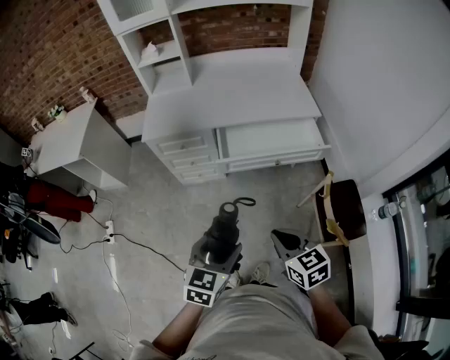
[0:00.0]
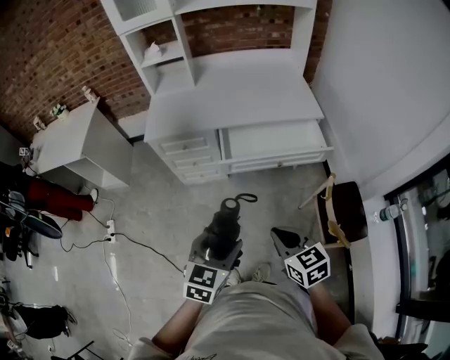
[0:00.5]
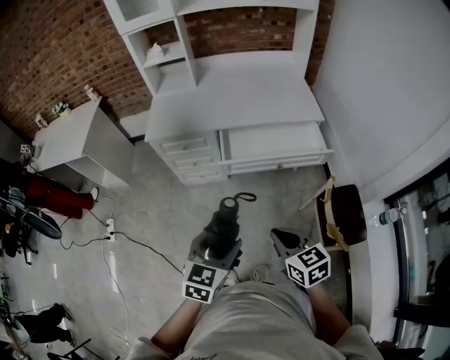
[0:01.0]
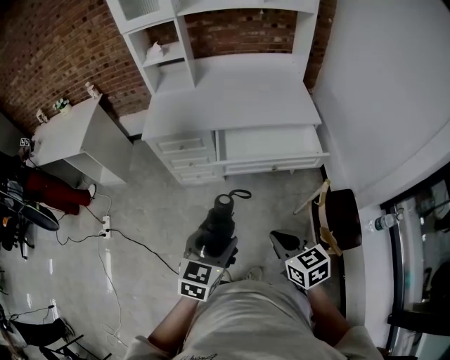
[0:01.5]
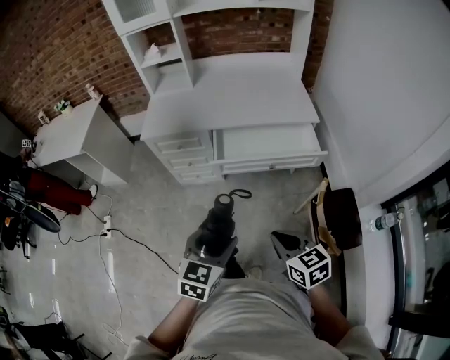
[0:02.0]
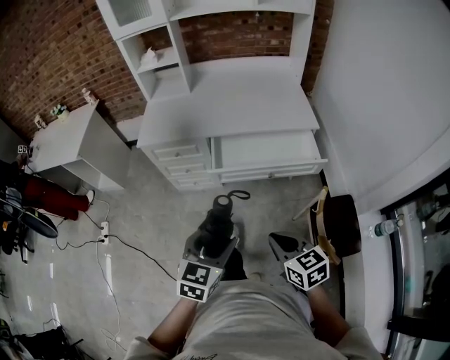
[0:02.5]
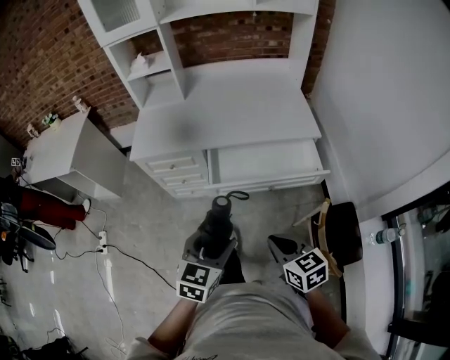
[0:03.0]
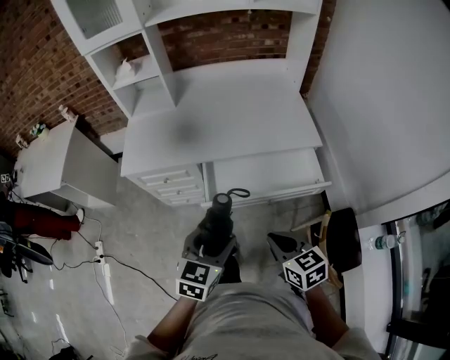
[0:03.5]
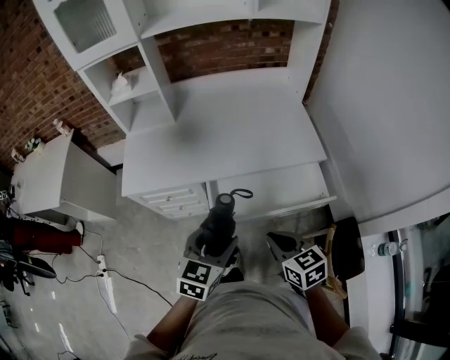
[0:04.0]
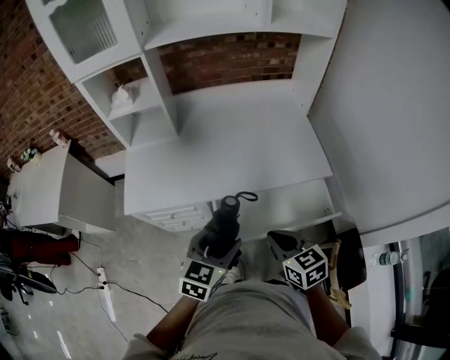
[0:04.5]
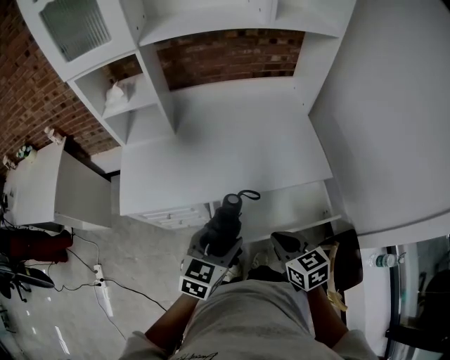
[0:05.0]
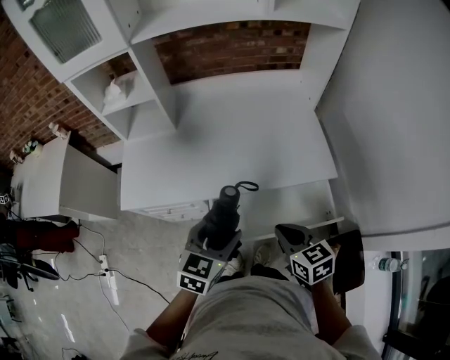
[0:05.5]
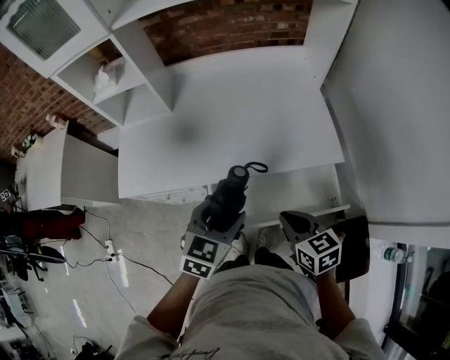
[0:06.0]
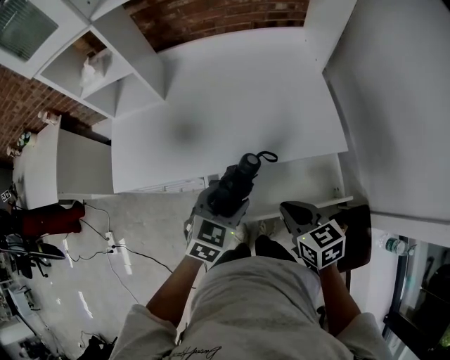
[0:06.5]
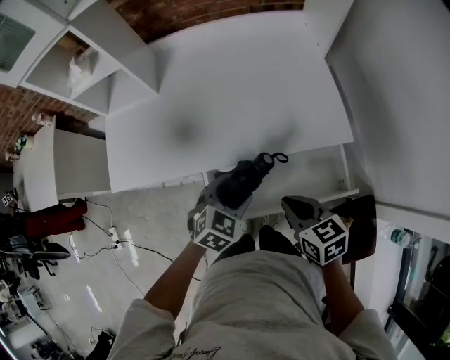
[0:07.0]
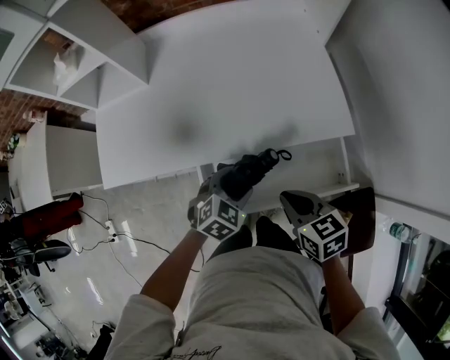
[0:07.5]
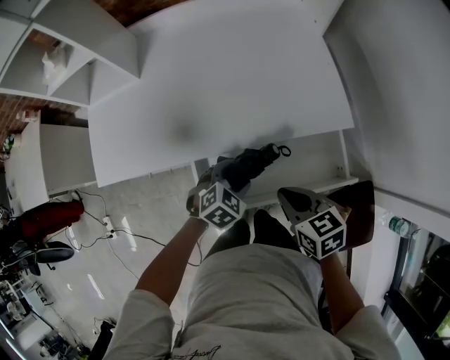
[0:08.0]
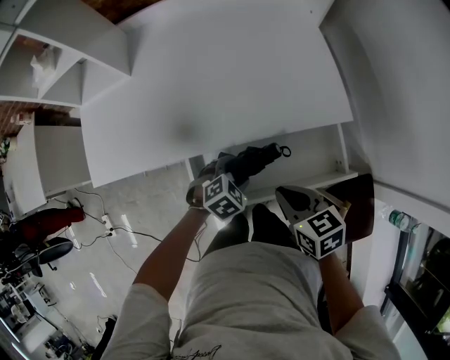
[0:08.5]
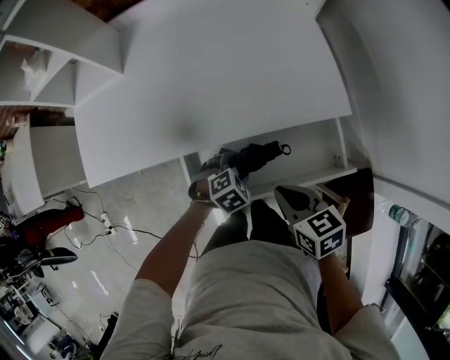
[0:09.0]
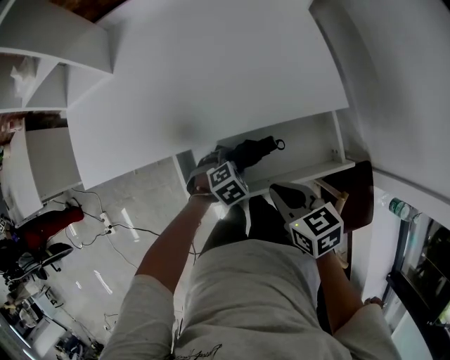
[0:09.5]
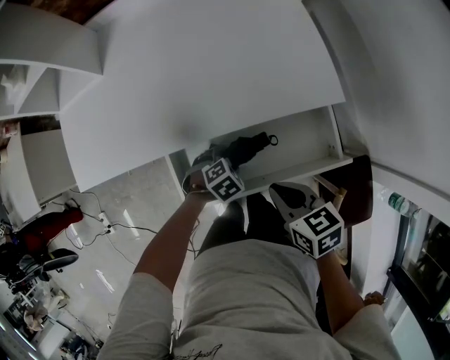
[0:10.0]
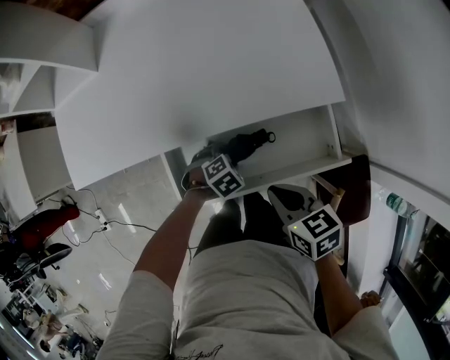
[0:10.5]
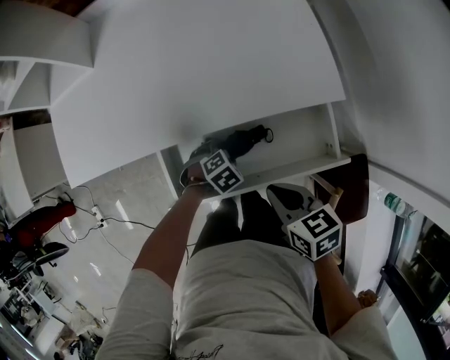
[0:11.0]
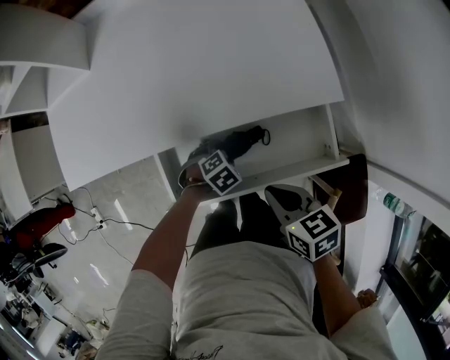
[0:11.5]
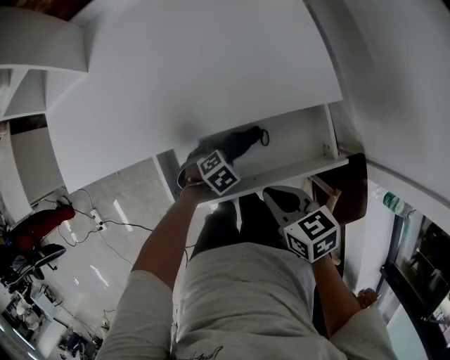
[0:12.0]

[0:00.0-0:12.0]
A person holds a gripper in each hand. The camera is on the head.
0:00.0 to 0:02.0: The right gripper travels to the right by roughly 5 cm.
0:02.0 to 0:04.0: Both grippers move forward, about 30 cm.
0:04.0 to 0:06.0: Both grippers move forward, roughly 15 cm.
0:06.0 to 0:08.0: The right gripper is displaced downward by some 10 cm. Meanwhile the left gripper shifts about 20 cm downward, and changes its angle by about 30 degrees.
0:08.0 to 0:10.0: The left gripper goes some 10 cm downward, and rotates some 20 degrees.
0:10.0 to 0:12.0: The grippers make only small movements.

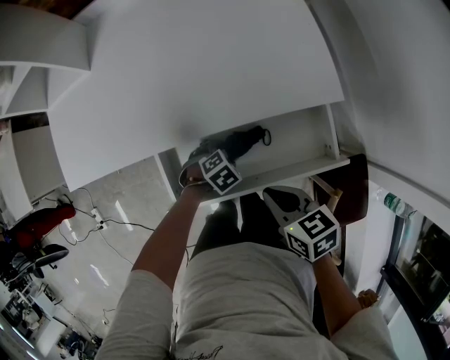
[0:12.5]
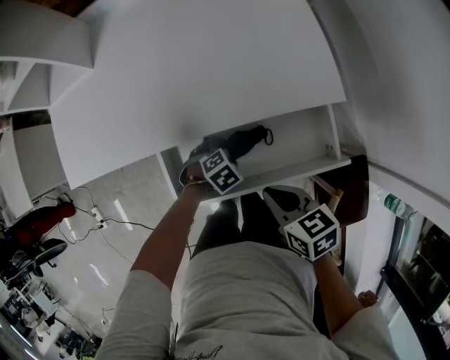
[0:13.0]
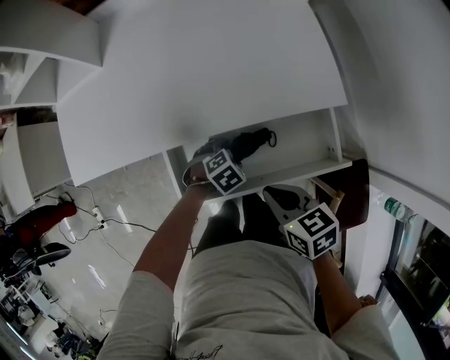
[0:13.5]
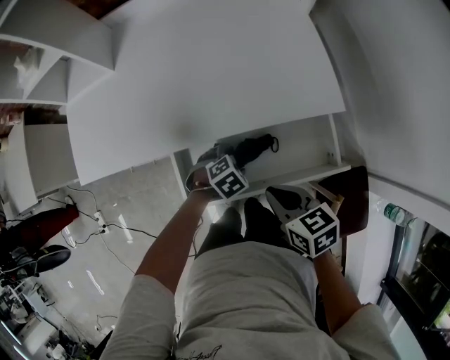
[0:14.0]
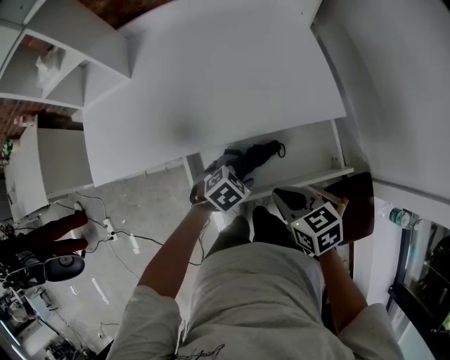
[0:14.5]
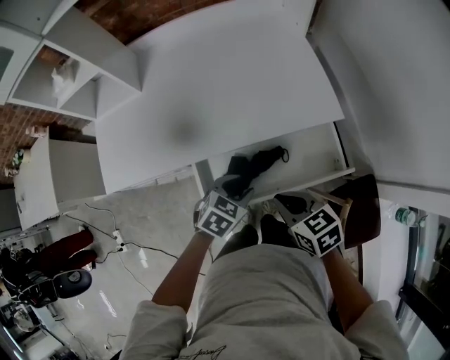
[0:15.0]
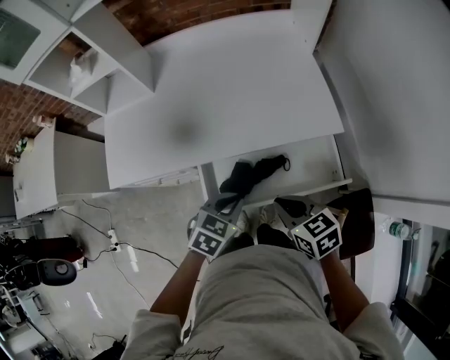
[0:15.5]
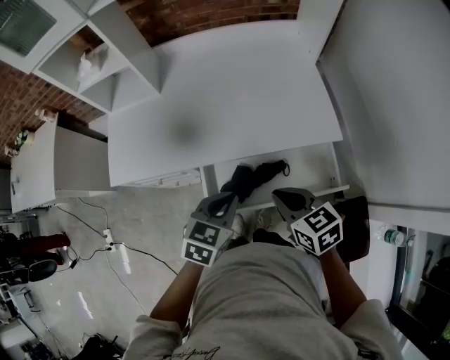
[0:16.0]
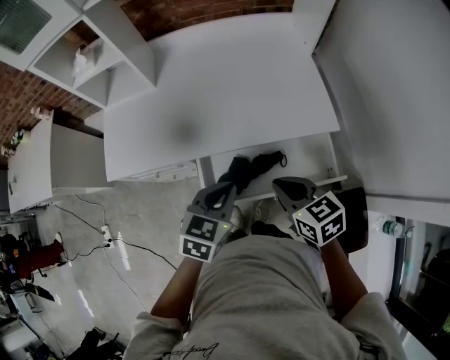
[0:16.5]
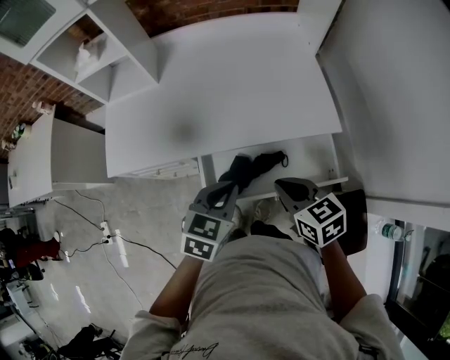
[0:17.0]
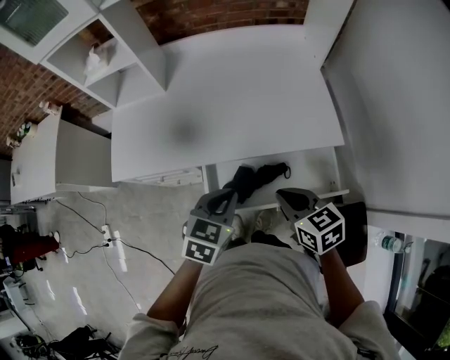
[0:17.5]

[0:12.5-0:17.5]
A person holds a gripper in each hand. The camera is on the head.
0:12.5 to 0:15.0: The right gripper goes roughly 5 cm upward. Meanwhile the left gripper goes roughly 20 cm upward, and changes its angle by about 30 degrees.
0:15.0 to 0:17.5: The left gripper shifts about 15 cm upward and to the left, rotates approximately 30 degrees, and closes its fingers. Meanwhile the right gripper shifts some 5 cm upward.

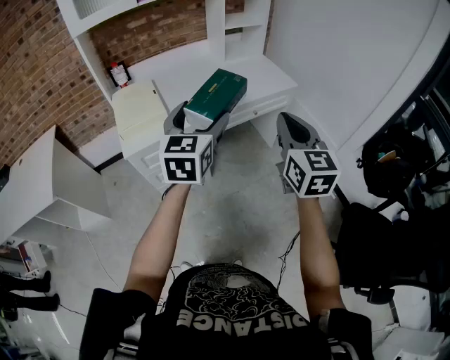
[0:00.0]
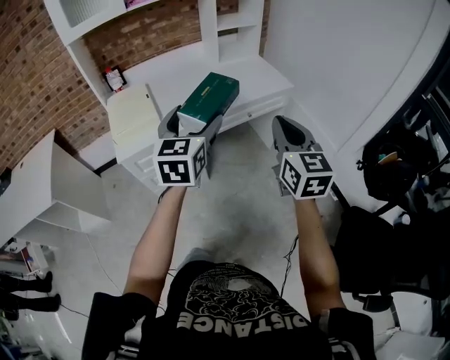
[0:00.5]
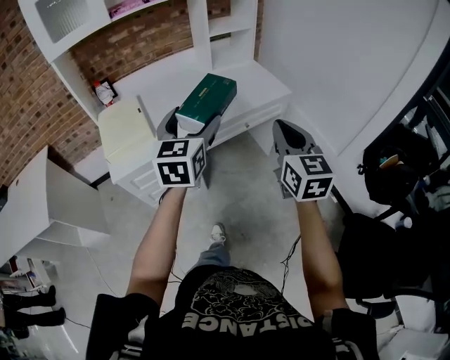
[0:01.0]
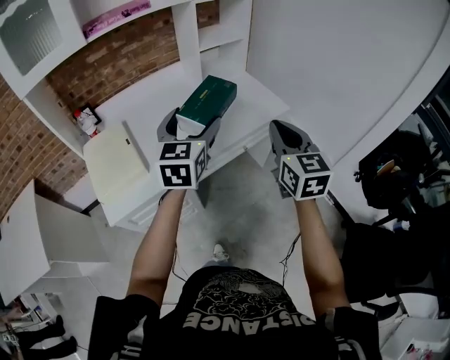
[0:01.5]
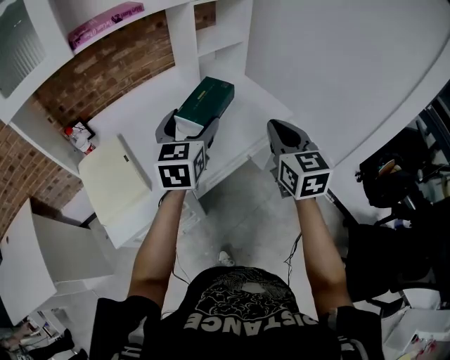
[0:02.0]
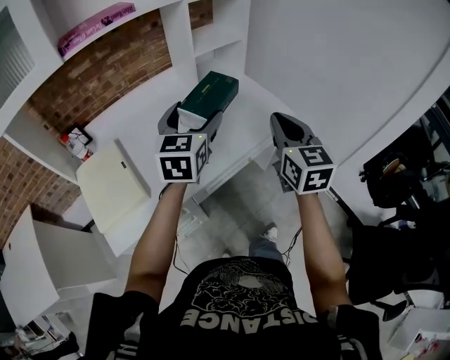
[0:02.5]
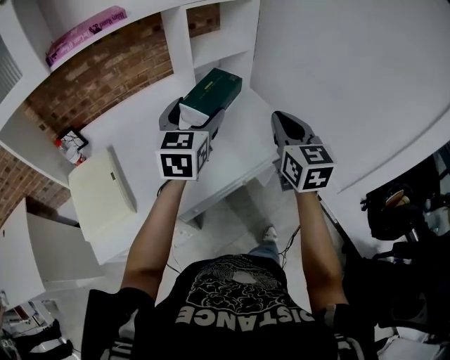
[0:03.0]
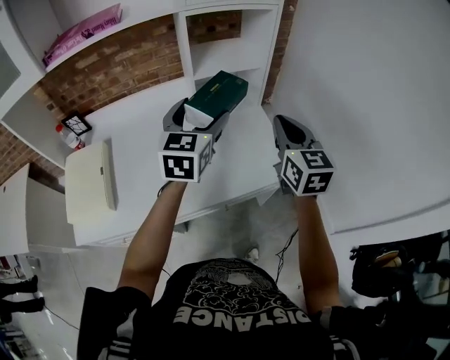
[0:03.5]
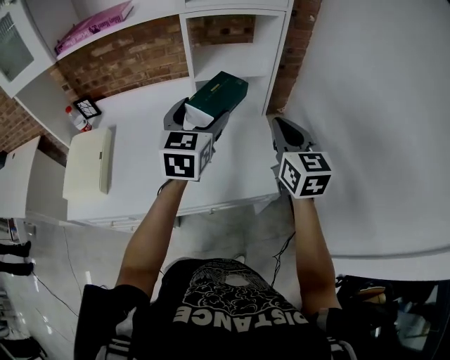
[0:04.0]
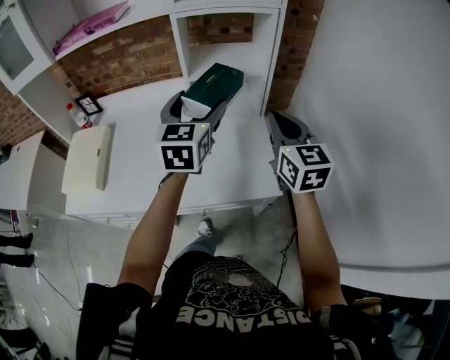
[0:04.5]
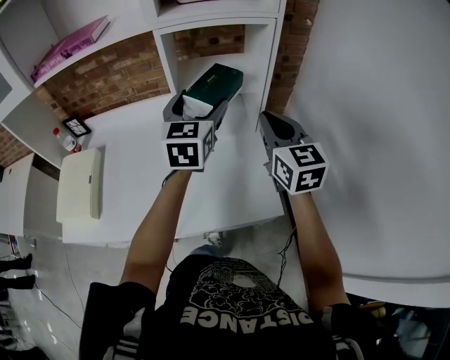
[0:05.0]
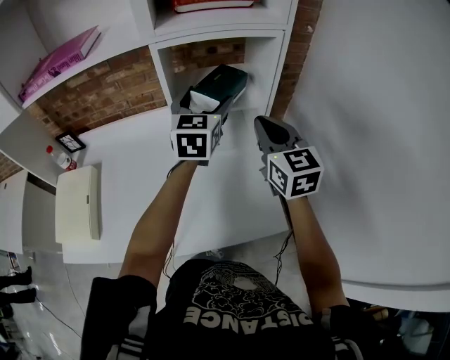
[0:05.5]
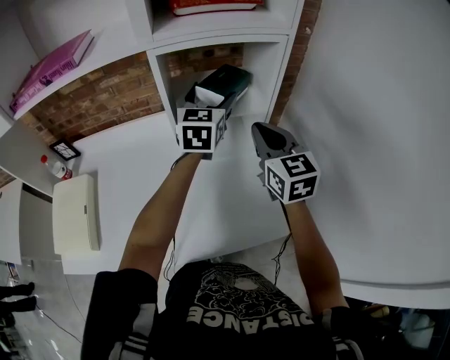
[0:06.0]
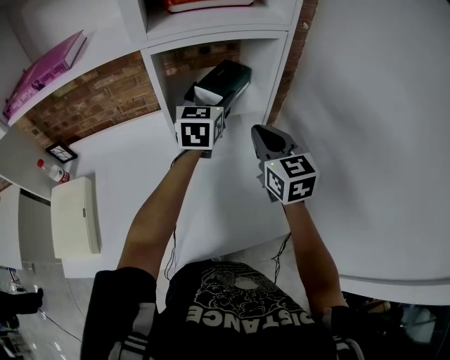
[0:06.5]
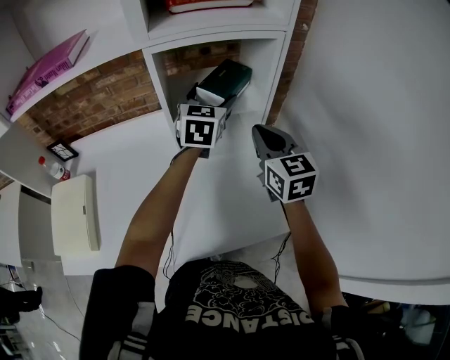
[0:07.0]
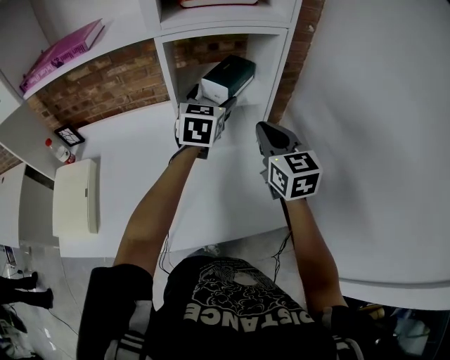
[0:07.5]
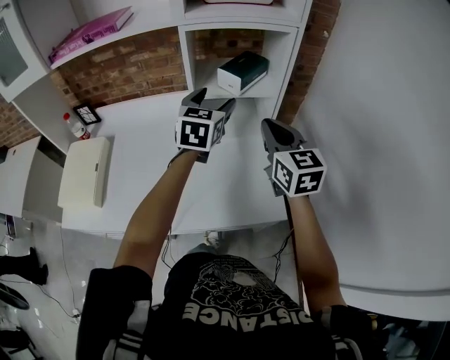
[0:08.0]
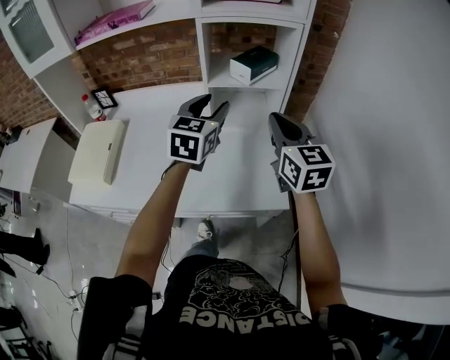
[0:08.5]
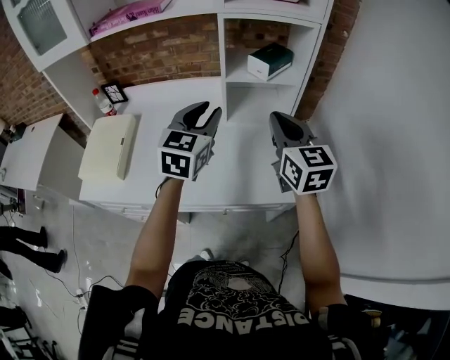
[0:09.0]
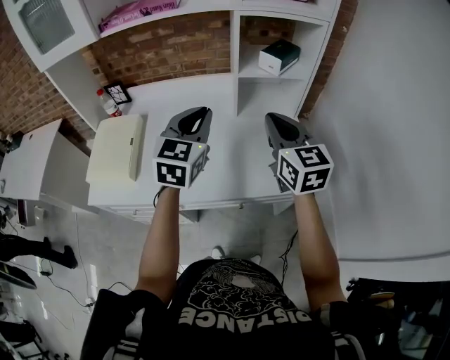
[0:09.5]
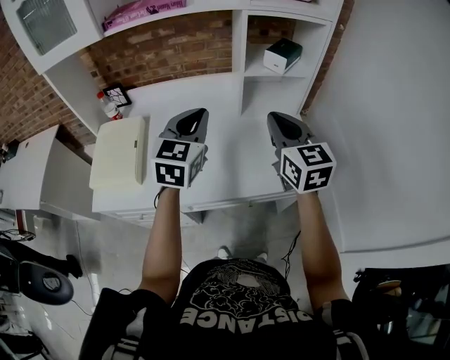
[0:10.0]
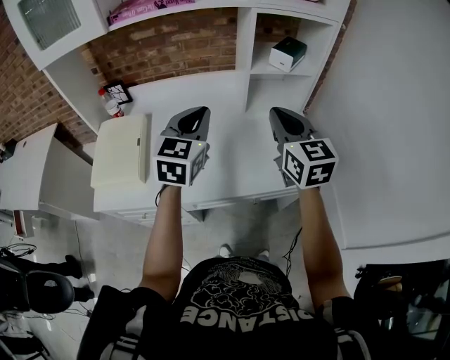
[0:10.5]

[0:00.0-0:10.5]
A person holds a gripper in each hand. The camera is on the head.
0:00.0 to 0:02.0: Both grippers move forward, about 30 cm.
0:02.0 to 0:04.0: The right gripper ends up some 35 cm from where it was, and turns by roughly 30 degrees; the left gripper moves roughly 30 cm, and swivels about 20 degrees.
0:04.0 to 0:06.5: The right gripper heads forward, covering approximately 15 cm, while the left gripper travels forward by approximately 25 cm.
0:06.5 to 0:08.5: The right gripper shifts some 10 cm backward, while the left gripper is displaced backward by some 20 cm, and closes its fingers.
0:08.5 to 0:10.5: The right gripper moves to the left, roughly 20 cm; the left gripper shifts roughly 20 cm to the left and backward, and closes its fingers.
